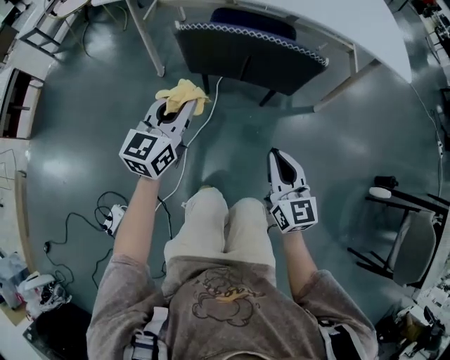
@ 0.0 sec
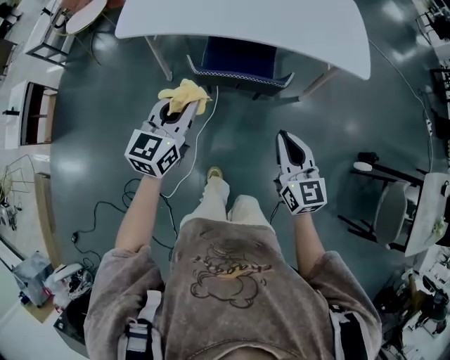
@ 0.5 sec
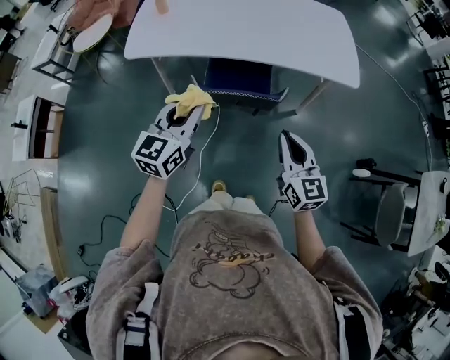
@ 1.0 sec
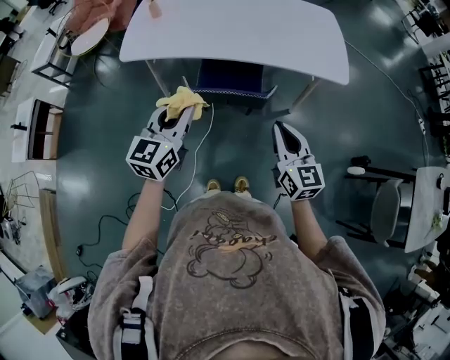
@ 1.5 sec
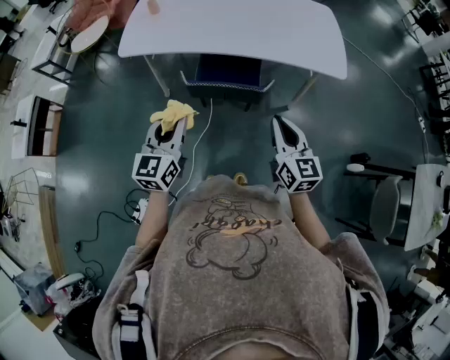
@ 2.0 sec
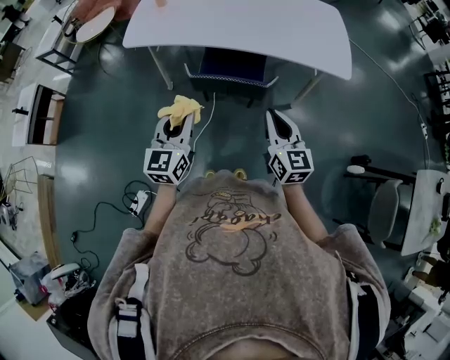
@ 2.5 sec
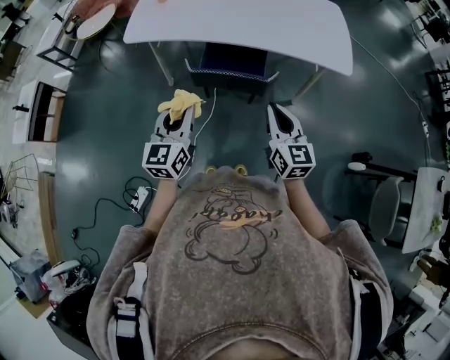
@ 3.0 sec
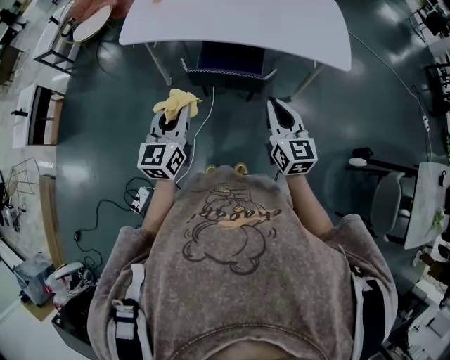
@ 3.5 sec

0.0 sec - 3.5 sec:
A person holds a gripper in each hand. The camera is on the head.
0.0 sec - 2.0 sec: The grippers both shift upward by about 35 cm.
2.0 sec - 3.5 sec: The grippers stay close to where they were, moving slightly.

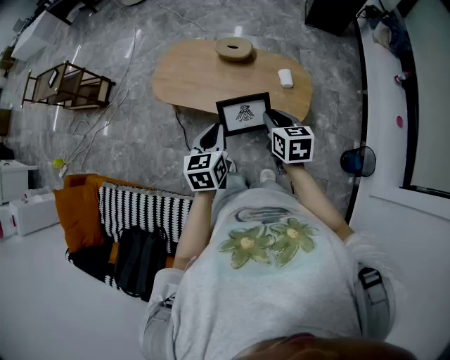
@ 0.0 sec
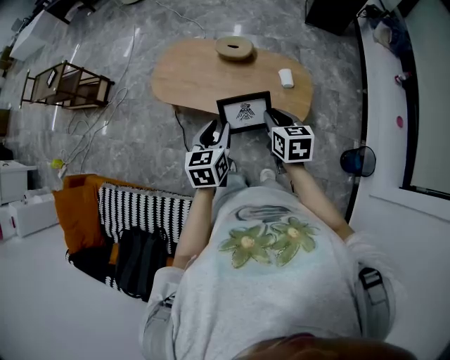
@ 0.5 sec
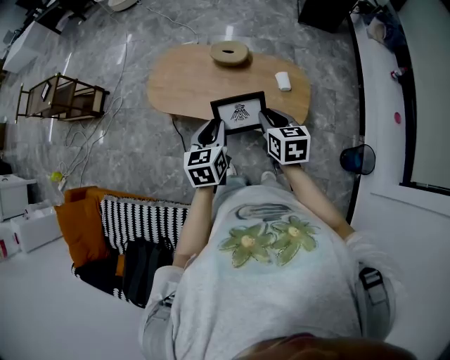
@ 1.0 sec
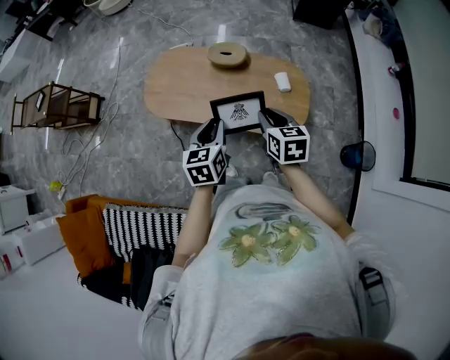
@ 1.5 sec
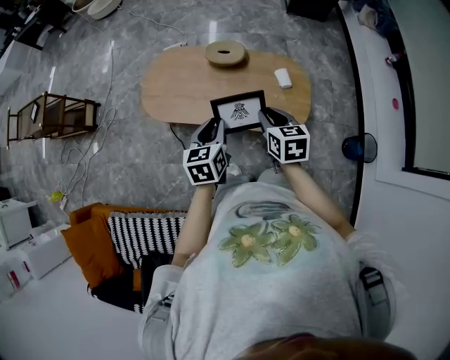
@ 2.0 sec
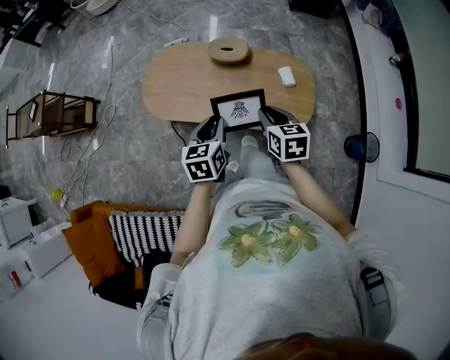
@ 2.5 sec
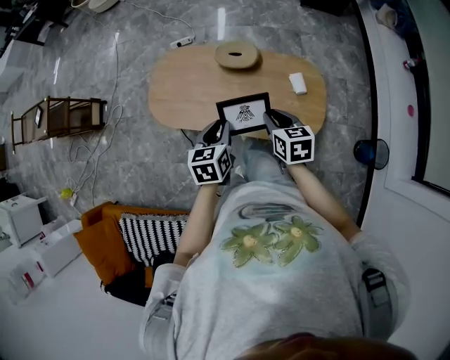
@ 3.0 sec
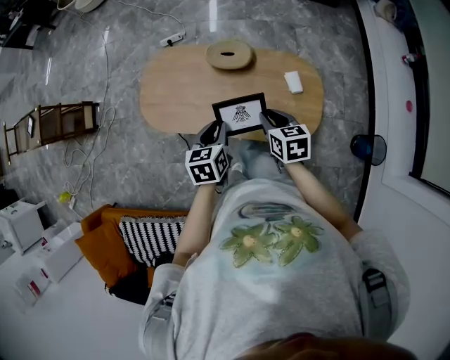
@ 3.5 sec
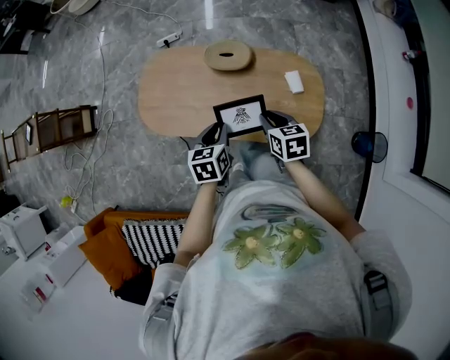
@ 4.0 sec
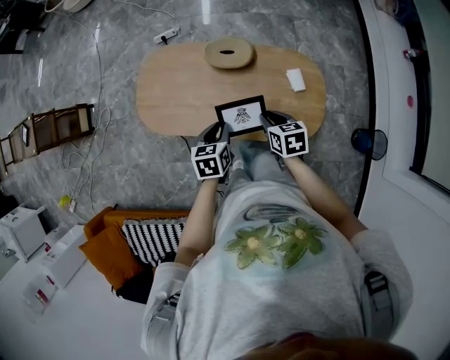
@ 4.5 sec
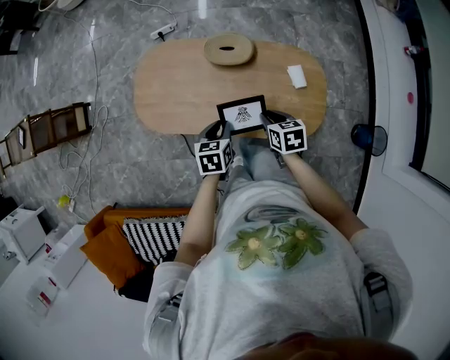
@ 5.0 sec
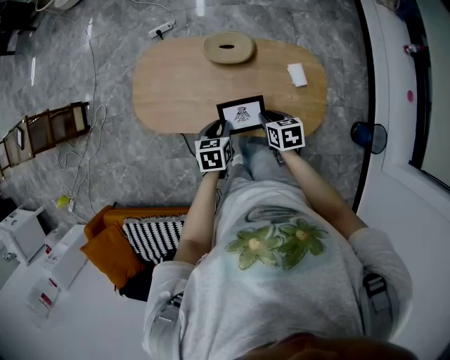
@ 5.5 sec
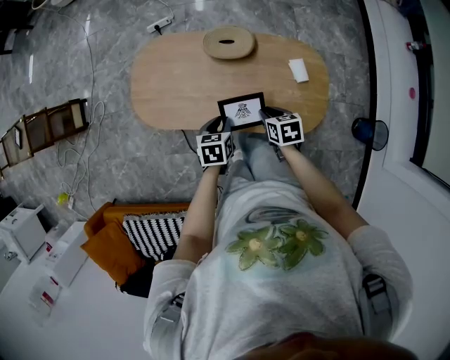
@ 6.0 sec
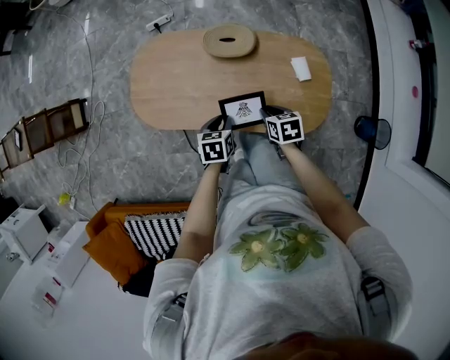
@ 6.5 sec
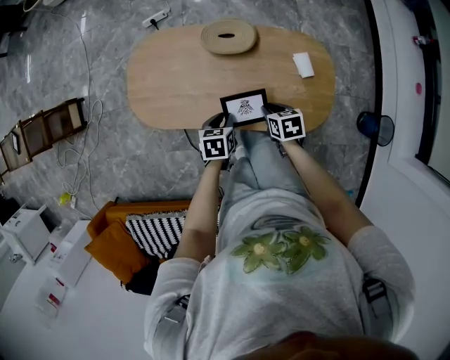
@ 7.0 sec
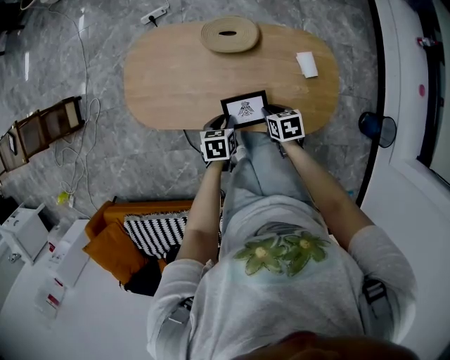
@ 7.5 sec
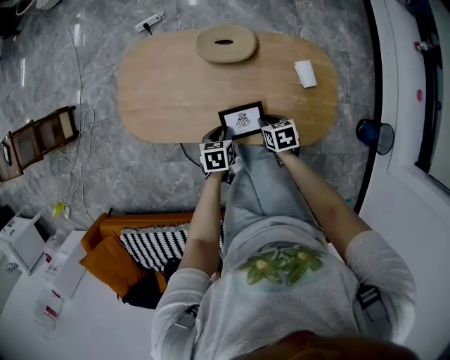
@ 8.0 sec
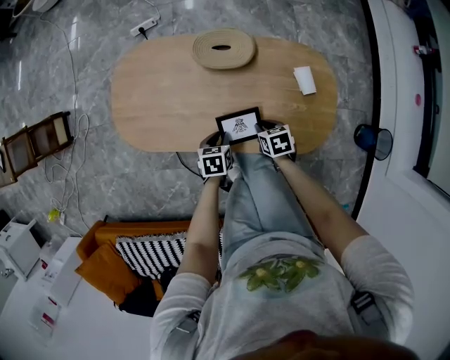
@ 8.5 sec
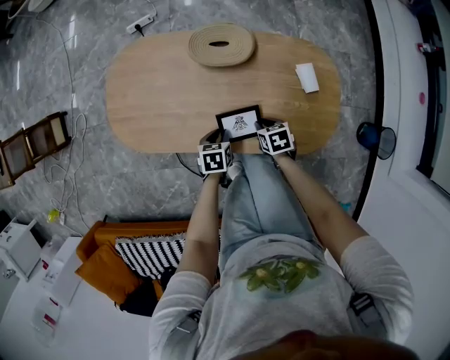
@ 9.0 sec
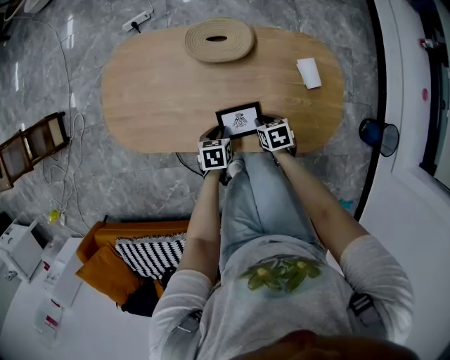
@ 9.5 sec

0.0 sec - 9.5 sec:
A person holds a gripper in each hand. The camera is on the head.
0.0 sec - 2.0 sec: The right gripper shifts roughly 10 cm forward and to the left. The left gripper travels forward by about 10 cm.
2.0 sec - 4.0 sec: The grippers both shift forward and downward by some 15 cm.
4.0 sec - 5.5 sec: The two grippers go roughly 10 cm downward.
5.5 sec - 7.5 sec: The two grippers go approximately 10 cm downward.
7.5 sec - 9.5 sec: The grippers both shift downward by roughly 15 cm.

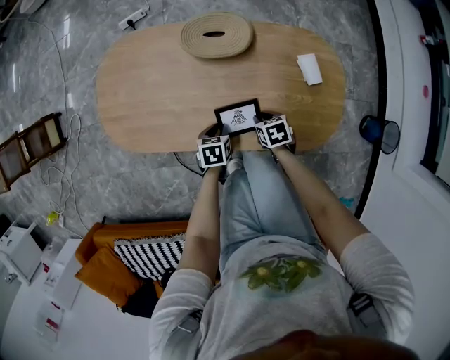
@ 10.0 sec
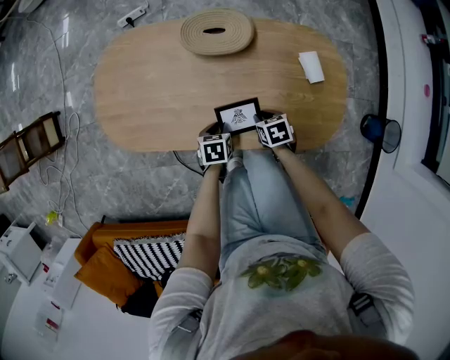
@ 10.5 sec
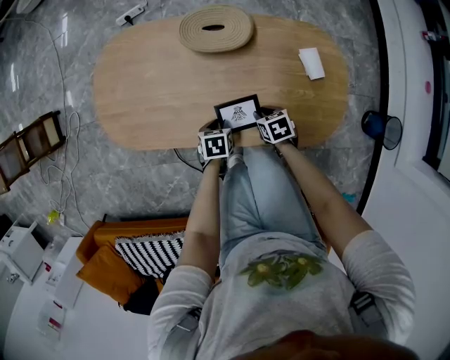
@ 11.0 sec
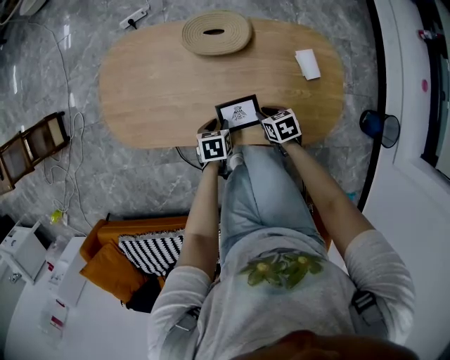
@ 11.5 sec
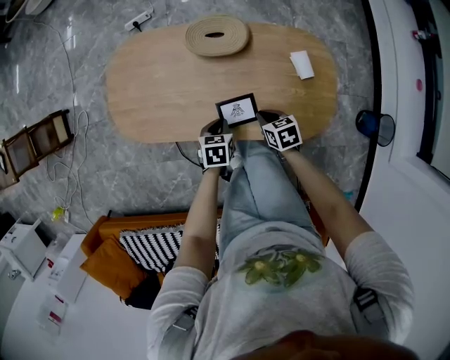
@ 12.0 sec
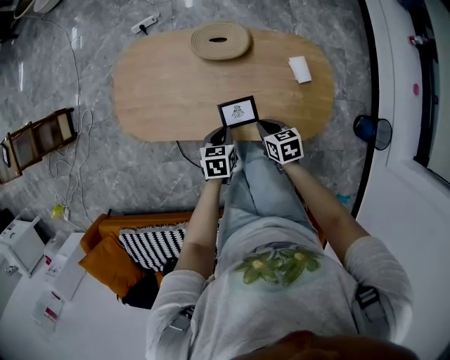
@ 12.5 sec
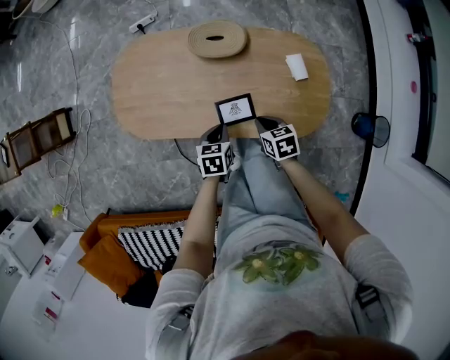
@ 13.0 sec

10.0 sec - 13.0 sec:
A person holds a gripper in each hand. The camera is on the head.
10.0 sec - 11.5 sec: The grippers move only a little.
11.5 sec - 13.0 sec: The two grippers go approximately 15 cm upward. The left gripper closes up.

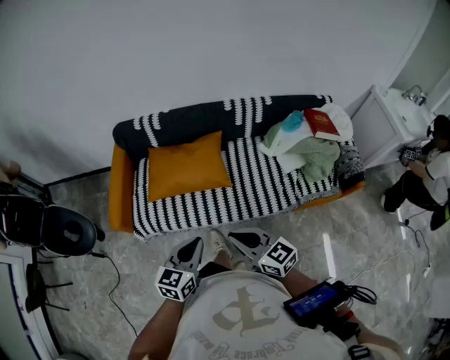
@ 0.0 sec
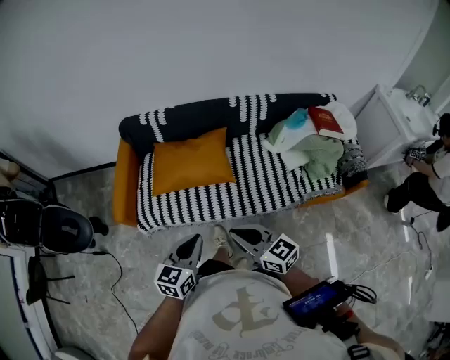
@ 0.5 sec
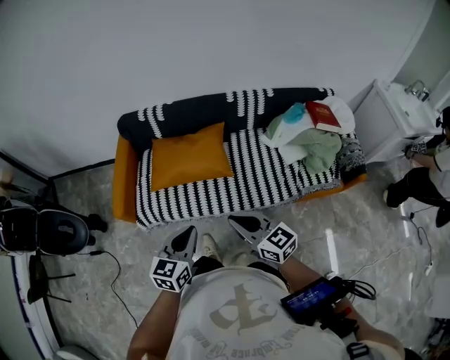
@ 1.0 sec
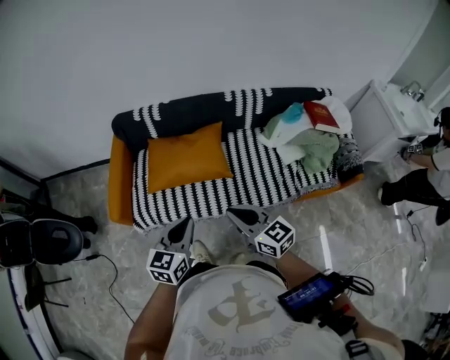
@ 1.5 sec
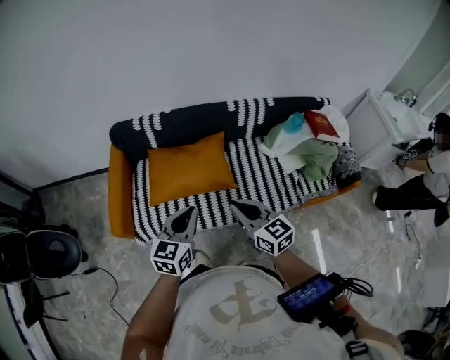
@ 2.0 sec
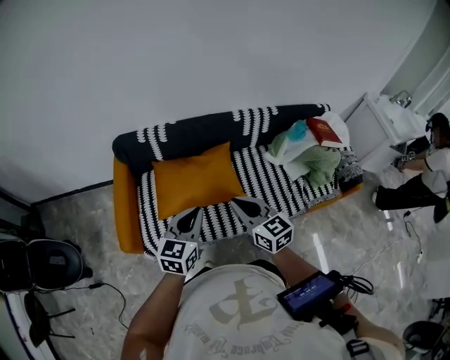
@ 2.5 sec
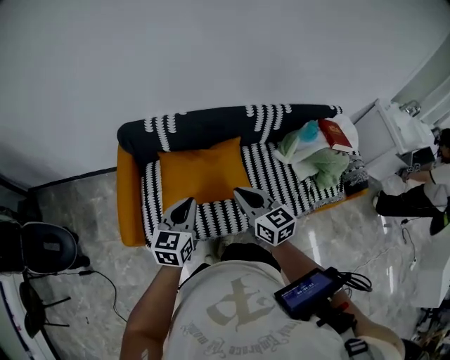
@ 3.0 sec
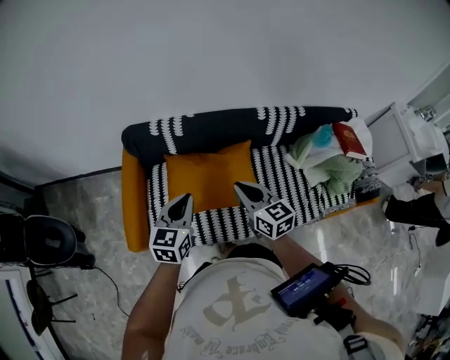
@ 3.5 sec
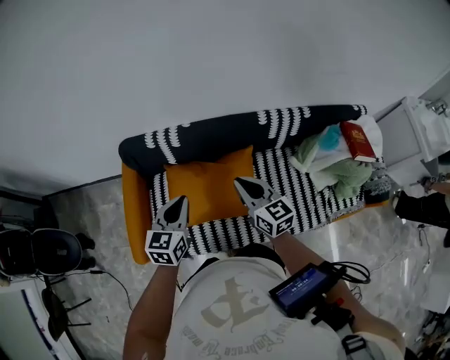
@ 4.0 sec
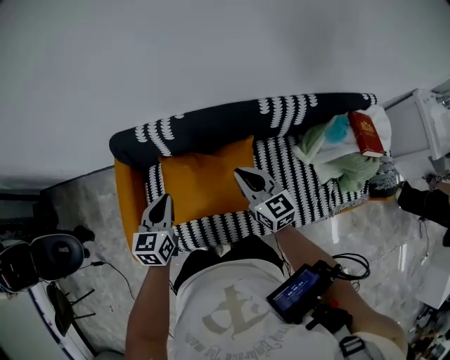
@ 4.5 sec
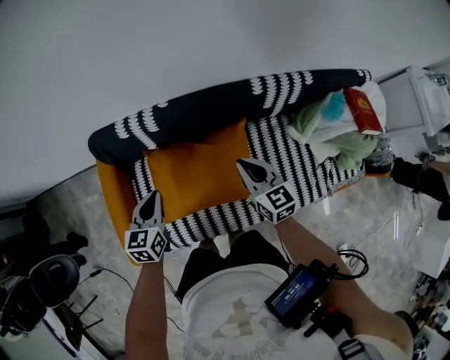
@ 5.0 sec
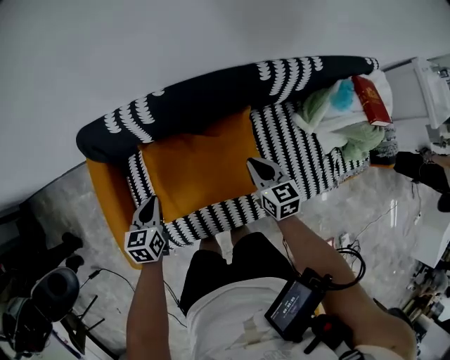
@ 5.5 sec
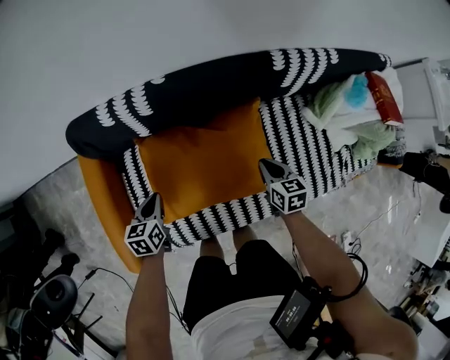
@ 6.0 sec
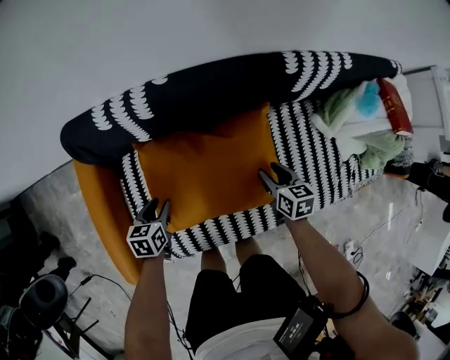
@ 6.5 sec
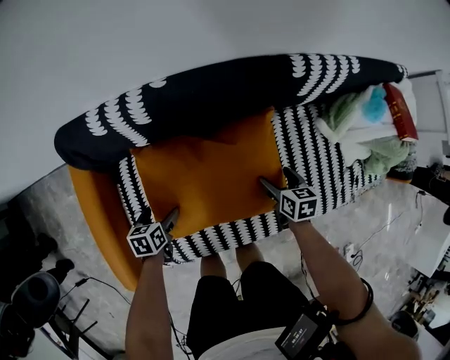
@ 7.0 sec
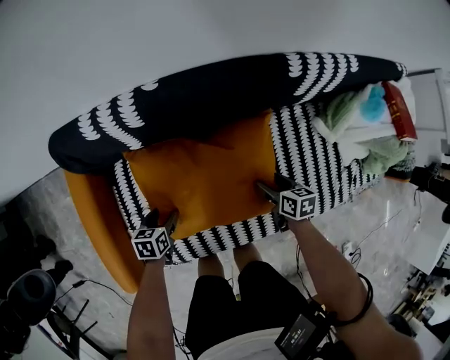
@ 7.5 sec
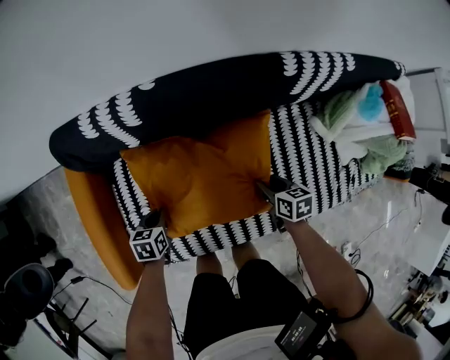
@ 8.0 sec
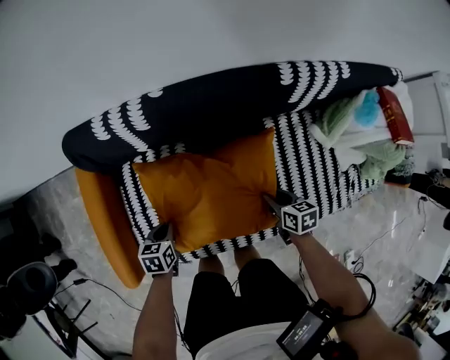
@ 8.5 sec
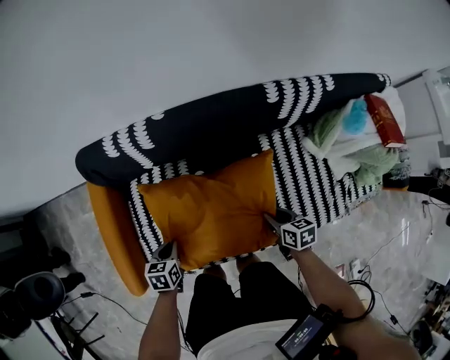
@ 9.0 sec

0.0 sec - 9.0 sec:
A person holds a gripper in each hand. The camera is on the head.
0.0 sec - 2.0 sec: The left gripper travels forward and to the left by roughly 15 cm, while the right gripper moves forward, some 10 cm.
2.0 sec - 4.5 sec: The two grippers go some 35 cm forward.
4.5 sec - 7.0 sec: The grippers both shift downward by some 40 cm. The left gripper rotates roughly 40 degrees, and opens its fingers; the right gripper tilts its fingers roughly 40 degrees downward, and opens its fingers.
7.0 sec - 9.0 sec: The left gripper heads upward and backward, covering roughly 10 cm, and closes its fingers. The right gripper moves backward and upward, roughly 10 cm, and closes.

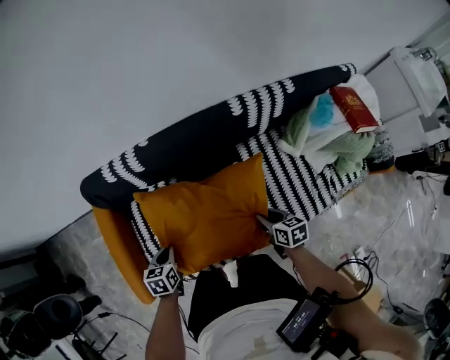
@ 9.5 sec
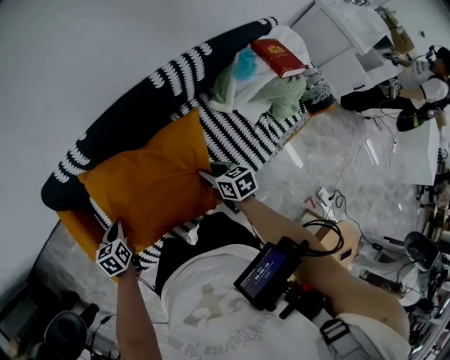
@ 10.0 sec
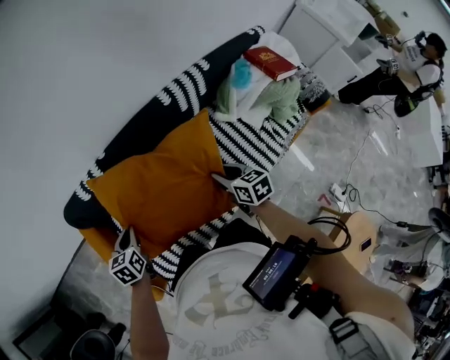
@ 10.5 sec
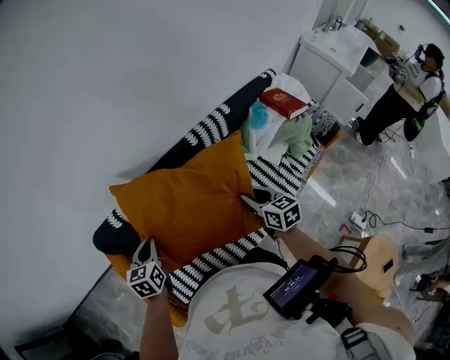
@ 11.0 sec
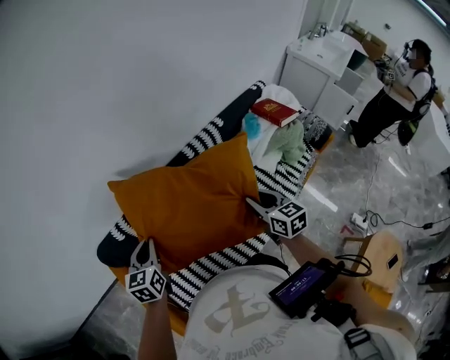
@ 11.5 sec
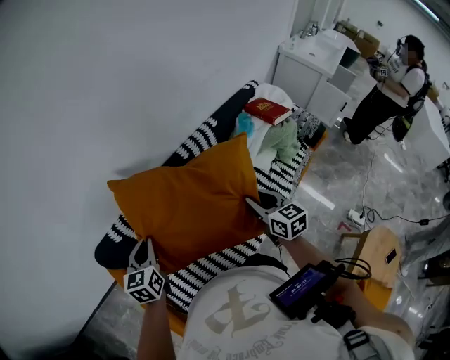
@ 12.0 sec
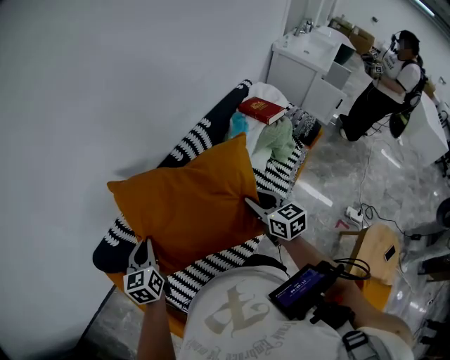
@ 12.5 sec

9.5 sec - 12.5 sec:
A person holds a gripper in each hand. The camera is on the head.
9.5 sec - 11.0 sec: Both grippers travel together upward, some 25 cm. The right gripper turns by approximately 30 degrees, while the left gripper turns by approximately 30 degrees.
11.0 sec - 12.5 sec: Both grippers move upward, some 5 cm.
